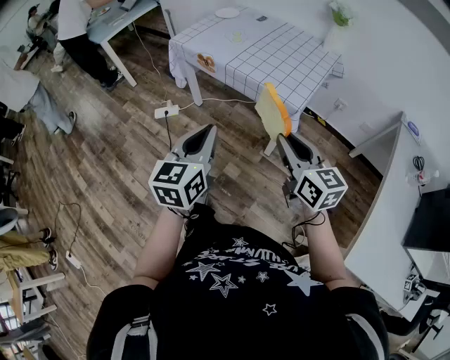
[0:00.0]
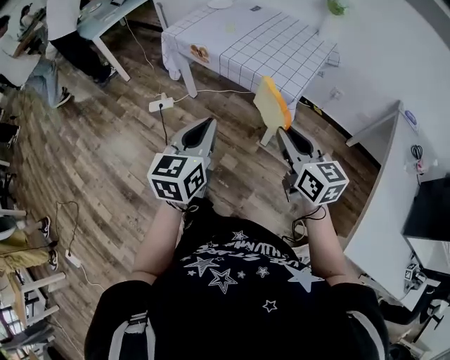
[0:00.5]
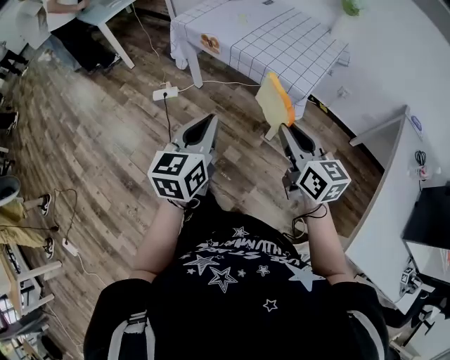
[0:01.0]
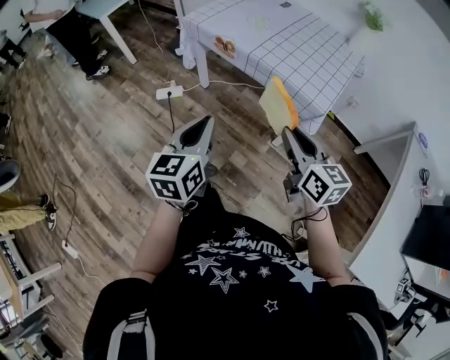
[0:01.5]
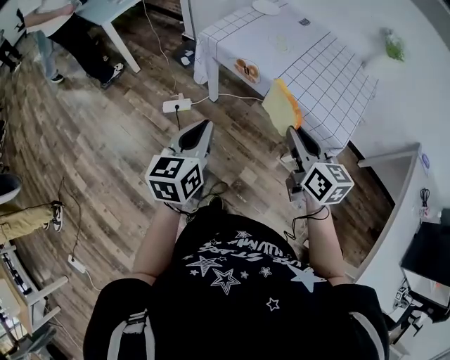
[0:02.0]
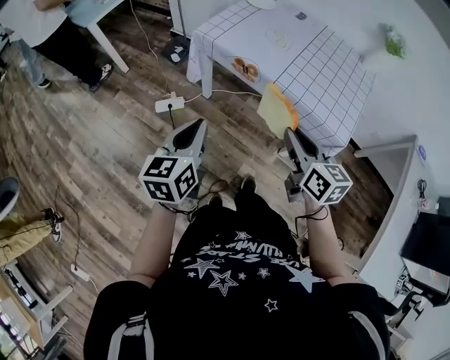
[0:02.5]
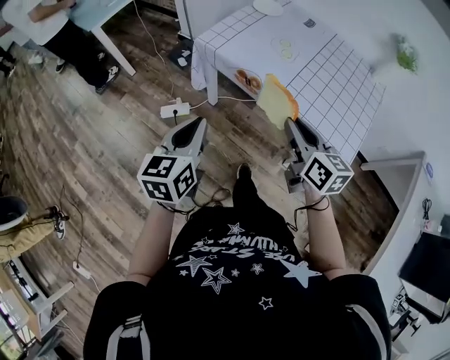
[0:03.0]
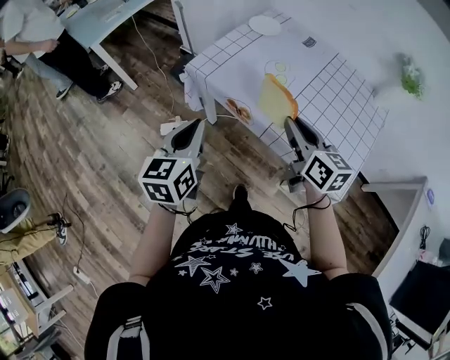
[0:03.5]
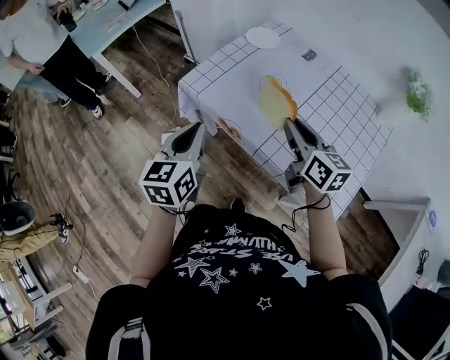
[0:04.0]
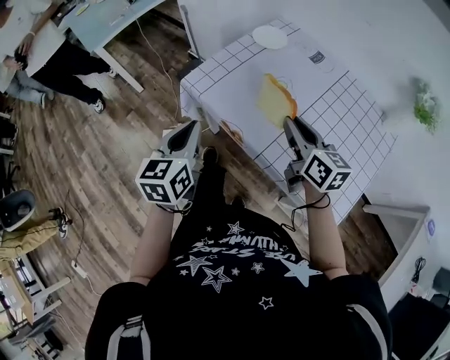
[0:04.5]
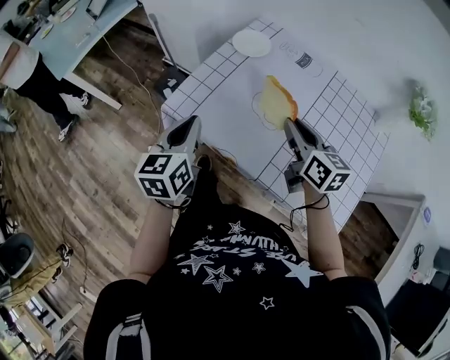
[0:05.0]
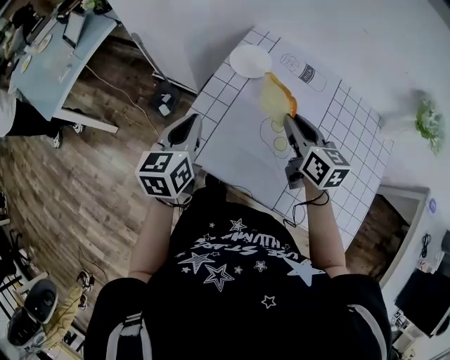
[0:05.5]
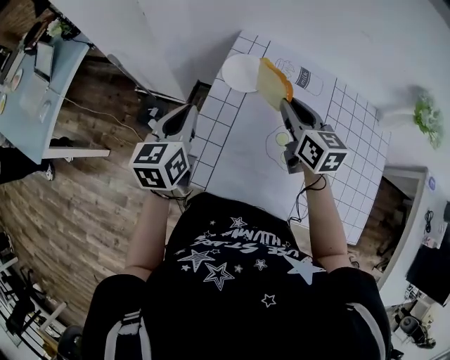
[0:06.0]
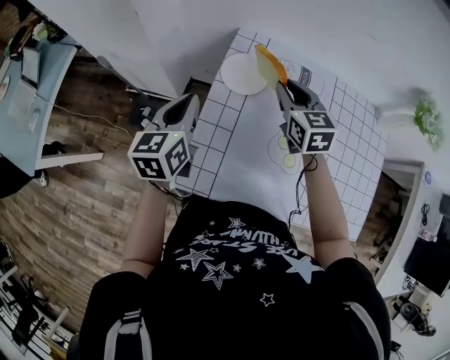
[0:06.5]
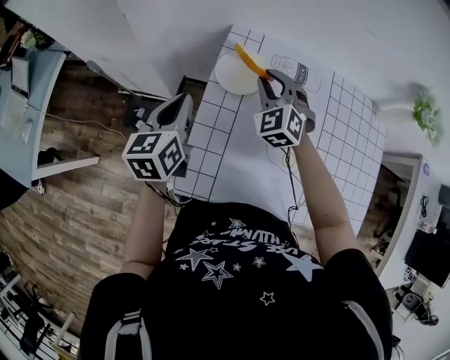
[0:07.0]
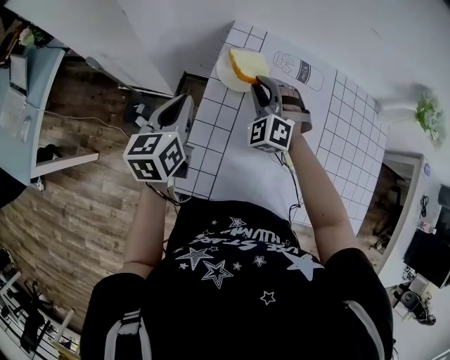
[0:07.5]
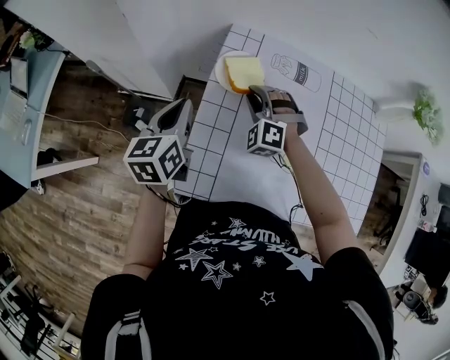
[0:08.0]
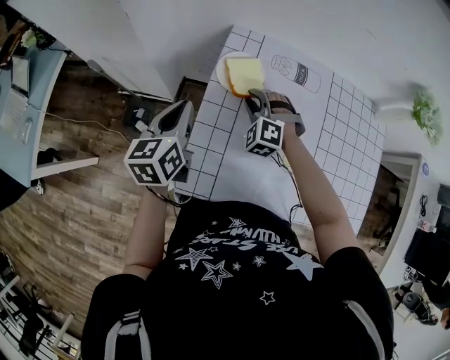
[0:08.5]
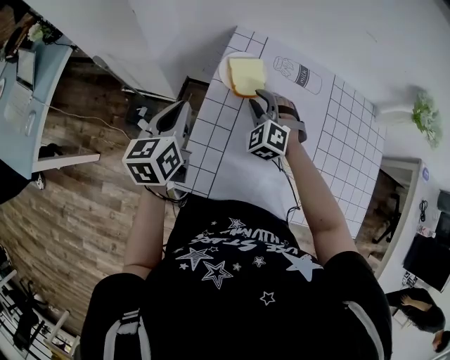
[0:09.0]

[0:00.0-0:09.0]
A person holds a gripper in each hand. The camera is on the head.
0:00.0 to 0:02.0: The left gripper goes roughly 30 cm to the left and forward. Meanwhile the right gripper heads forward and to the left, covering approximately 30 cm.
0:02.0 to 0:04.5: The grippers both shift forward by approximately 30 cm.
0:04.5 to 0:07.0: The right gripper ends up some 40 cm from where it was, and turns by some 70 degrees, while the left gripper moves approximately 40 cm, and changes its angle by roughly 30 degrees.
0:07.0 to 0:09.0: The right gripper goes roughly 10 cm downward and backward.

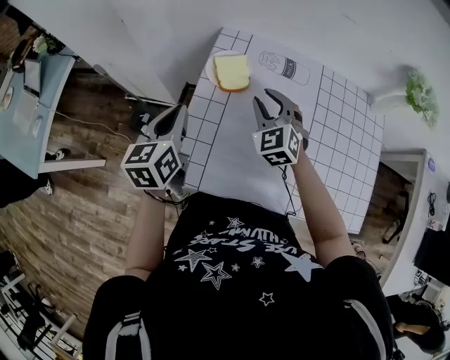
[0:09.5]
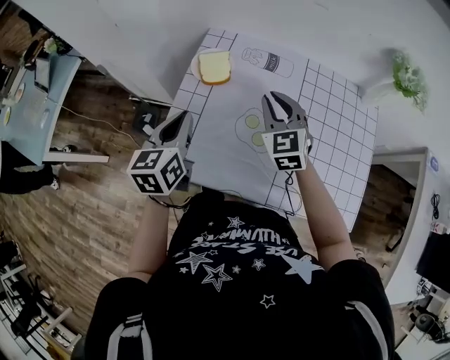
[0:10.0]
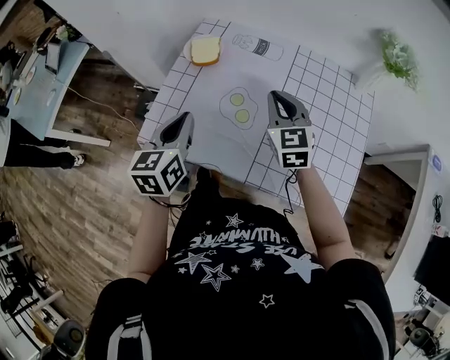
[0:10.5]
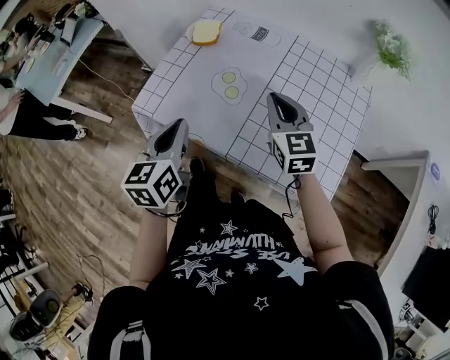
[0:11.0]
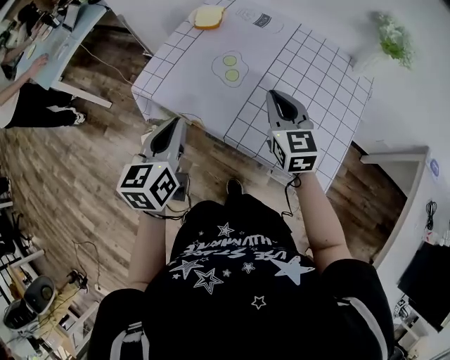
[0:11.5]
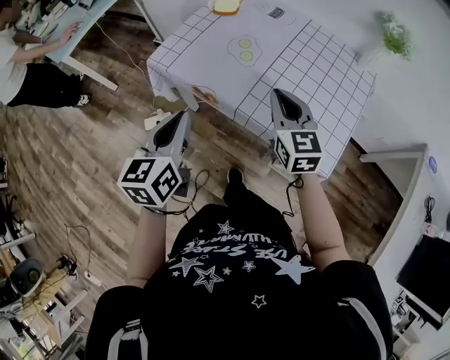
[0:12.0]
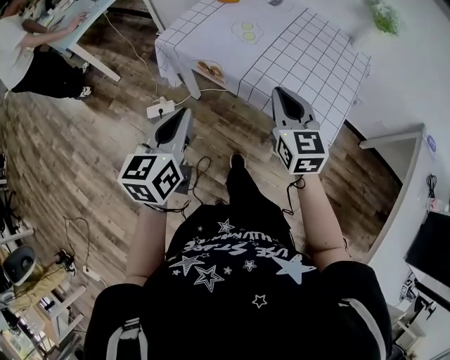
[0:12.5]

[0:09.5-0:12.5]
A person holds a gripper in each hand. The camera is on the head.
0:09.5 to 0:11.0: The two grippers go about 30 cm backward and to the right. The right gripper changes its angle by about 30 degrees, and closes up.
0:11.0 to 0:12.5: The grippers both shift backward by about 20 cm.

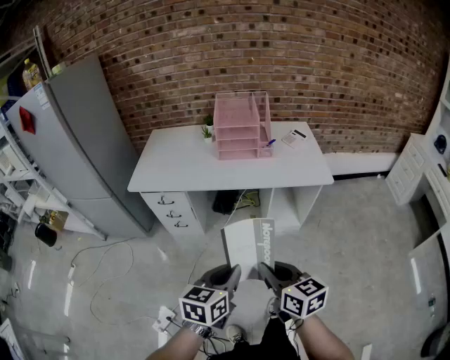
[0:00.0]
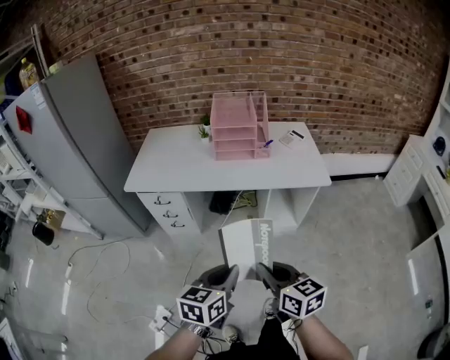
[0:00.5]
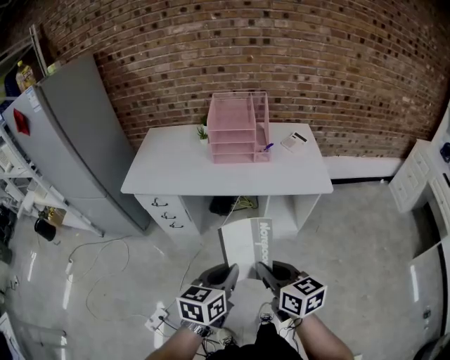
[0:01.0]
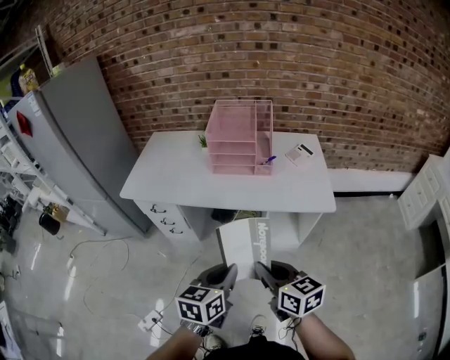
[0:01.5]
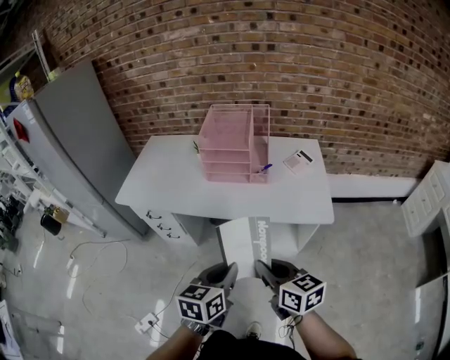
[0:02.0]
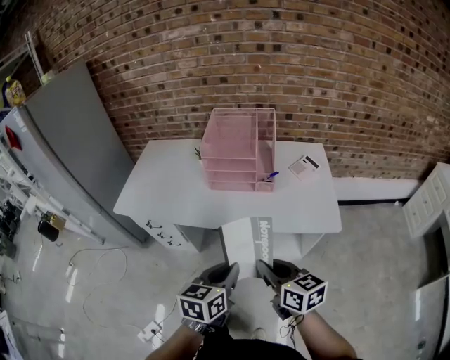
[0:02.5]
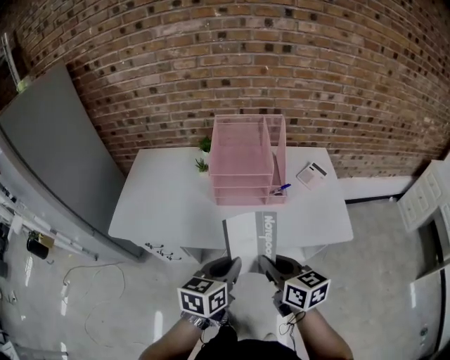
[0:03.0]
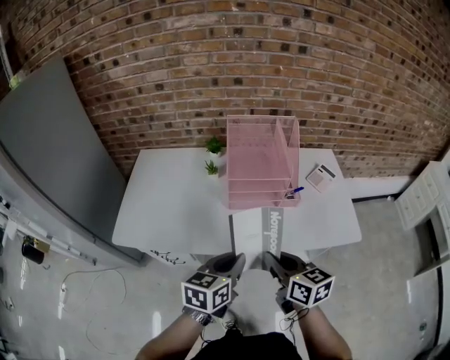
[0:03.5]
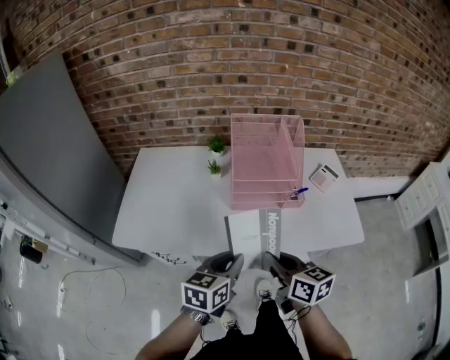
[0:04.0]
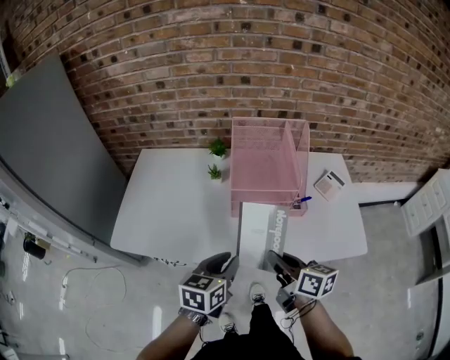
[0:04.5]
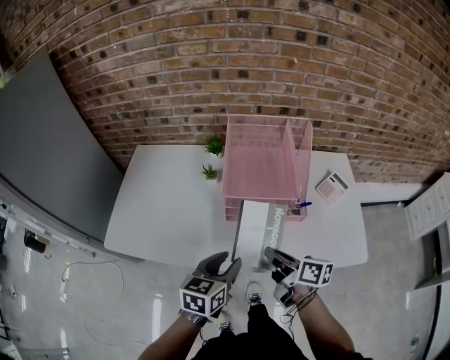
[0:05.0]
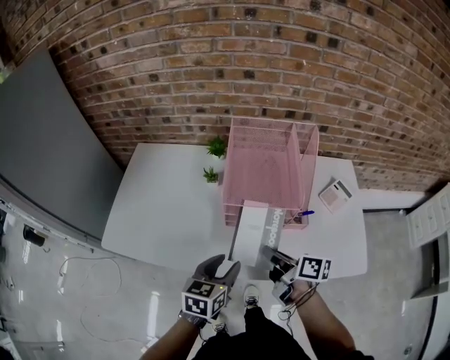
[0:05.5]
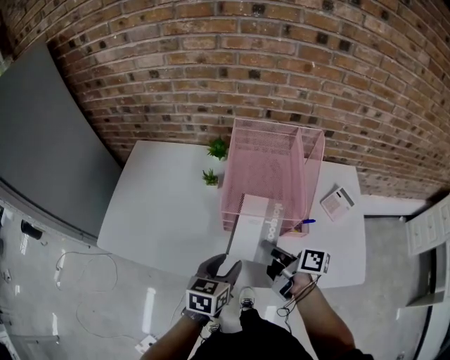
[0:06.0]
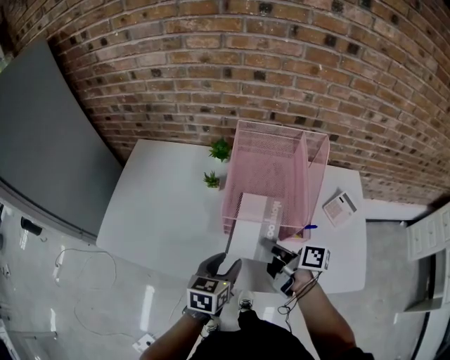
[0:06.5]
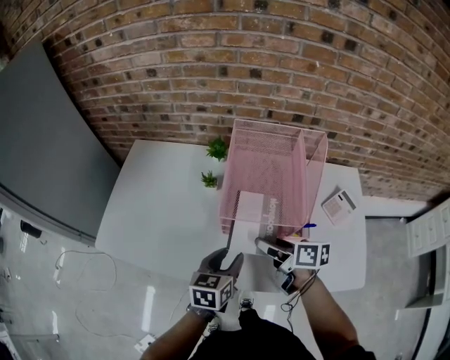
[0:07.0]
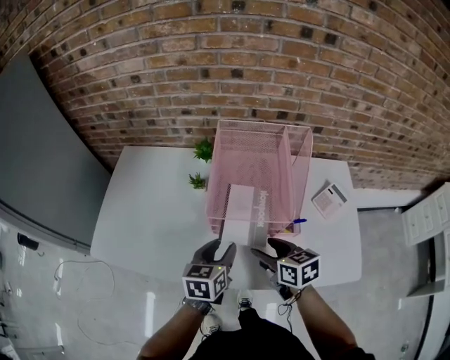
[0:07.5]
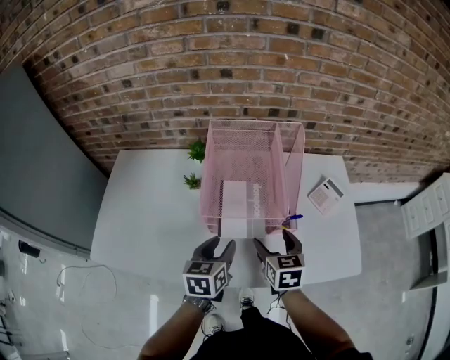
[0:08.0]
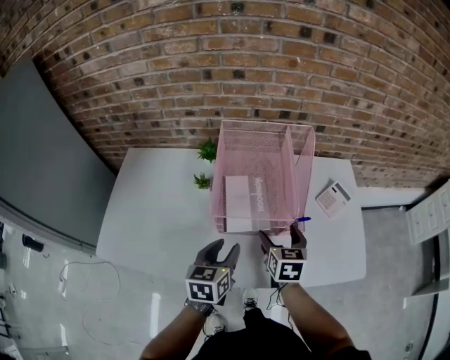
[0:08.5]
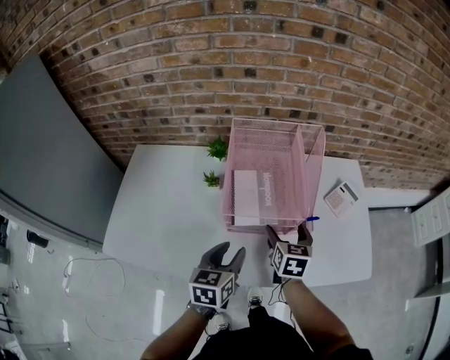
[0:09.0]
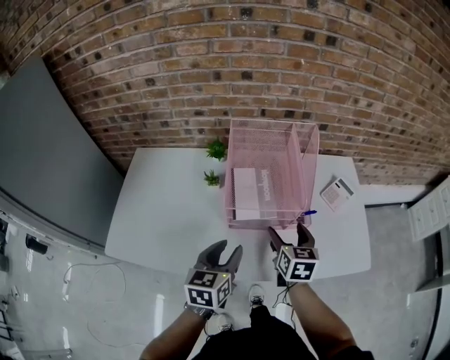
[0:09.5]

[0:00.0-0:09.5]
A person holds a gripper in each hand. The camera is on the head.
0:00.0 to 0:02.0: Both grippers travel together forward and to the right, some 25 cm.
0:02.0 to 0:04.0: Both grippers move forward and to the left, some 30 cm.
0:04.0 to 0:05.5: The right gripper is displaced forward, downward and to the right by some 15 cm, and turns by roughly 40 degrees. The left gripper travels forward and downward by roughly 10 cm, and opens its fingers.
0:05.5 to 0:07.5: The right gripper shifts by approximately 5 cm, swivels approximately 40 degrees, and opens its fingers. Meanwhile the left gripper heads forward, covering approximately 10 cm.
0:07.5 to 0:09.5: The right gripper changes its angle by approximately 30 degrees. Meanwhile the left gripper changes place by roughly 5 cm.

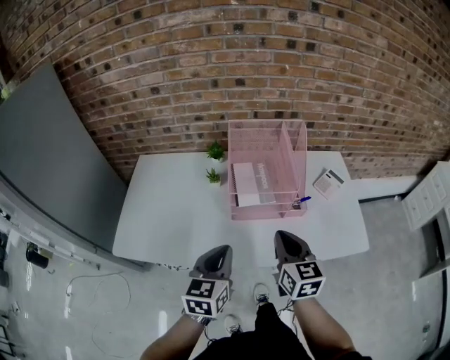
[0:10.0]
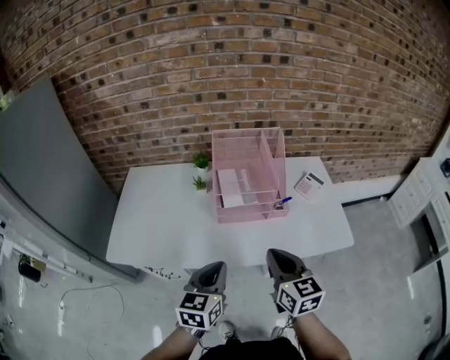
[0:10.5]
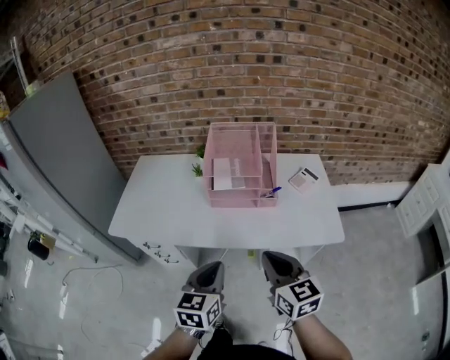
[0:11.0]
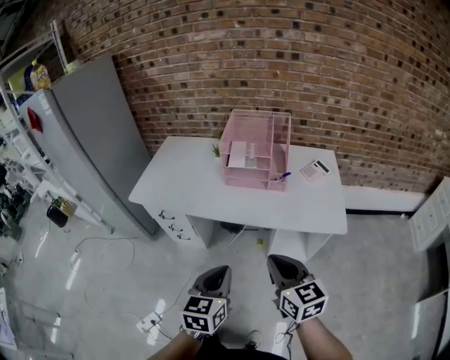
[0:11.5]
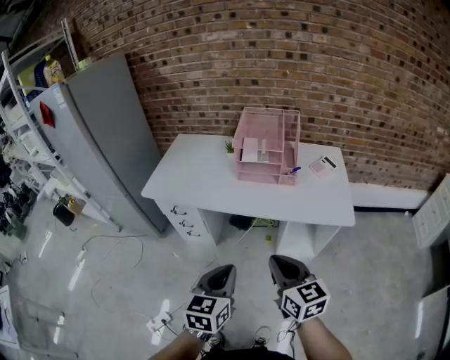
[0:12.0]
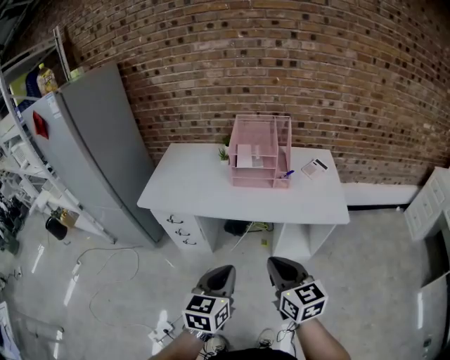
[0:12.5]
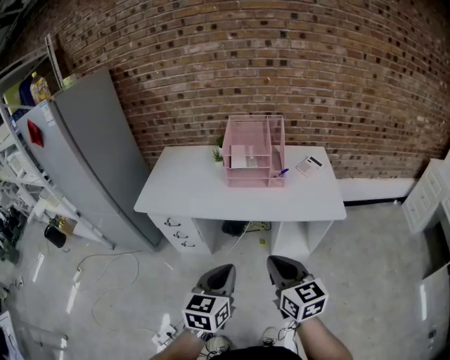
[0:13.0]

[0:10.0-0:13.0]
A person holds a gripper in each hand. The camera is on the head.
0:10.0 to 0:11.5: The left gripper is displaced backward and to the right by some 35 cm, while the right gripper travels backward by roughly 30 cm, and rotates some 20 degrees.
0:11.5 to 0:13.0: The right gripper heads to the left and backward, covering about 10 cm. Meanwhile the left gripper heads to the left, covering roughly 5 cm.

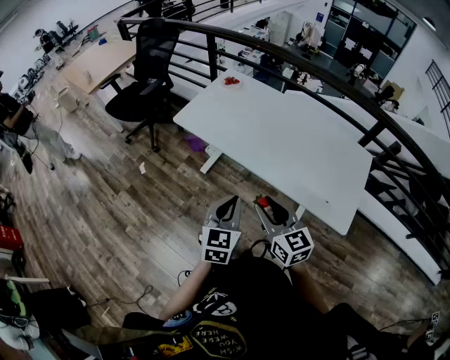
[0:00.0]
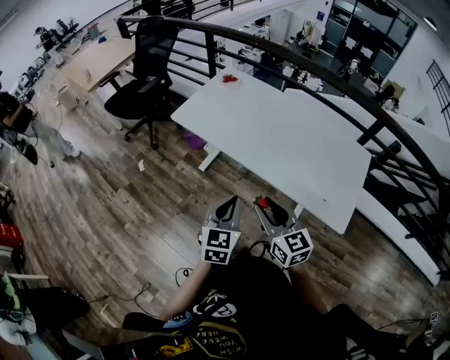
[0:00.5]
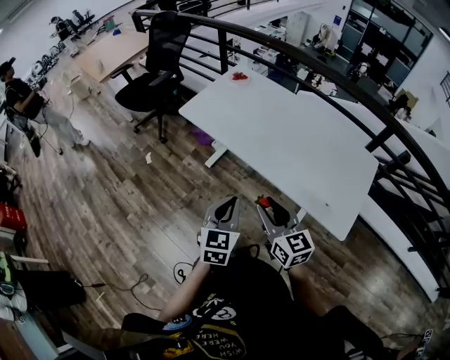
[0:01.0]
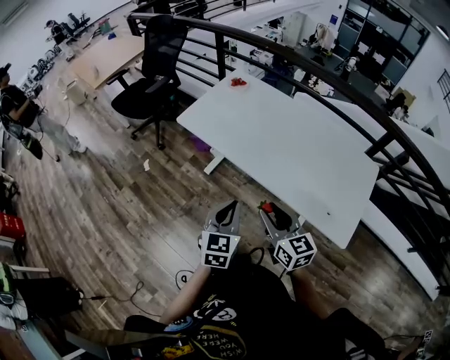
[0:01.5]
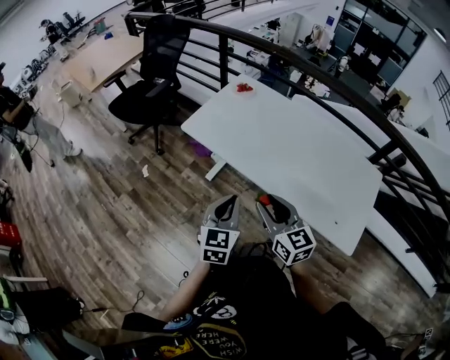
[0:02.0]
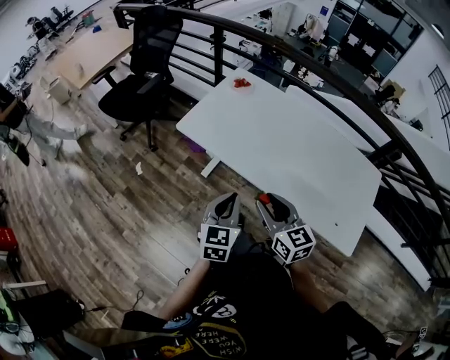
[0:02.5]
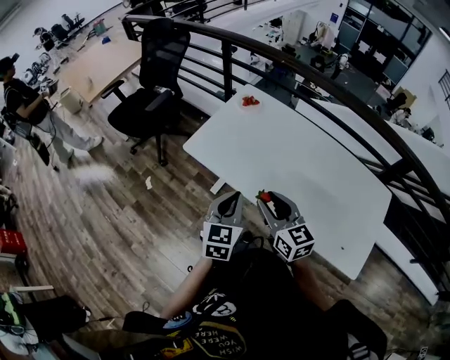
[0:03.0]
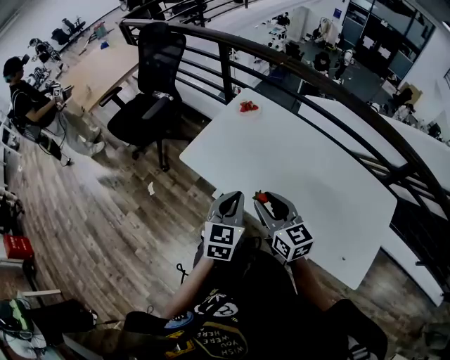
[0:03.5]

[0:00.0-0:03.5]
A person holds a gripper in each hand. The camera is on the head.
0:00.0 to 0:02.0: The right gripper travels forward by approximately 10 cm, while the left gripper shifts roughly 10 cm forward and to the left.
0:02.0 to 0:03.5: The grippers both shift forward by roughly 20 cm.
